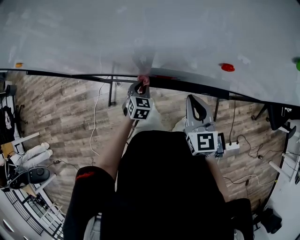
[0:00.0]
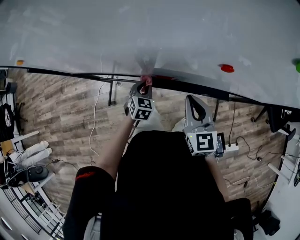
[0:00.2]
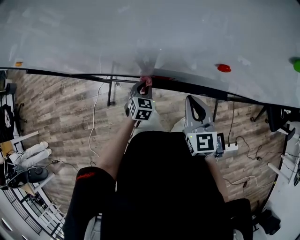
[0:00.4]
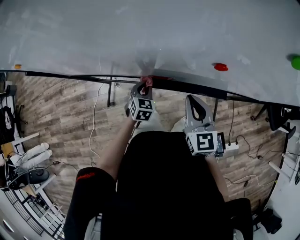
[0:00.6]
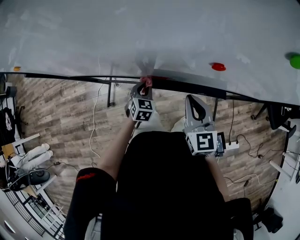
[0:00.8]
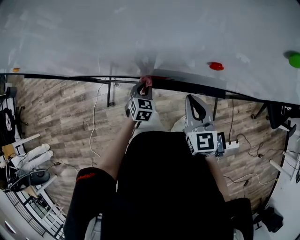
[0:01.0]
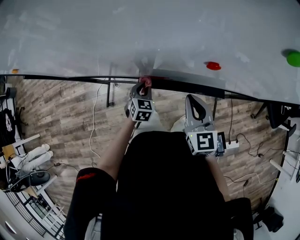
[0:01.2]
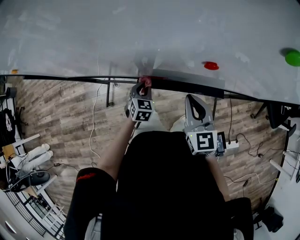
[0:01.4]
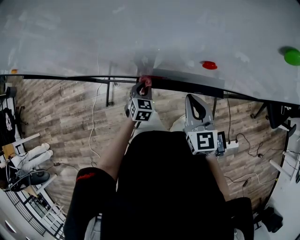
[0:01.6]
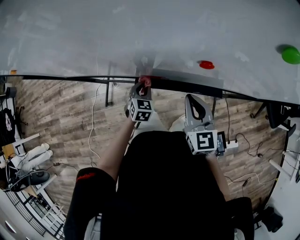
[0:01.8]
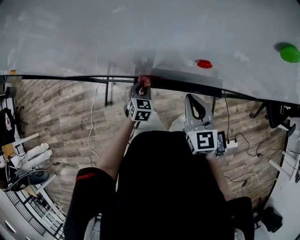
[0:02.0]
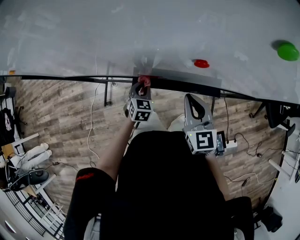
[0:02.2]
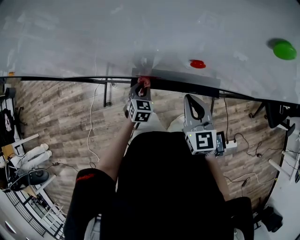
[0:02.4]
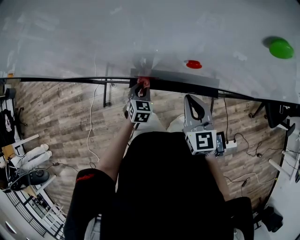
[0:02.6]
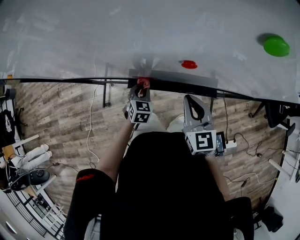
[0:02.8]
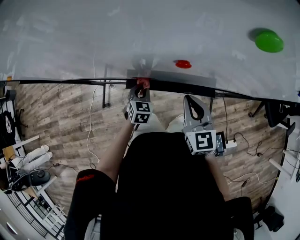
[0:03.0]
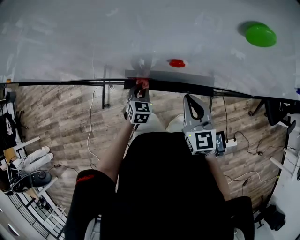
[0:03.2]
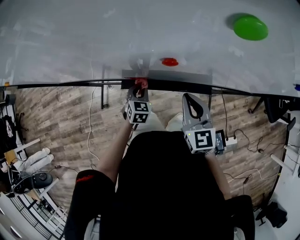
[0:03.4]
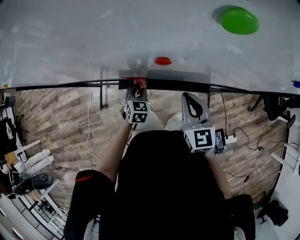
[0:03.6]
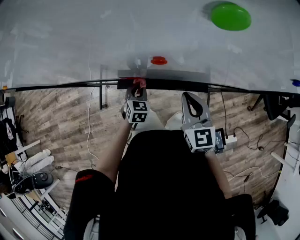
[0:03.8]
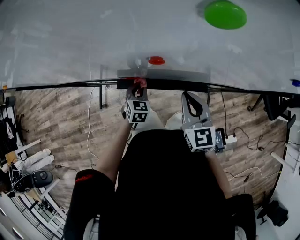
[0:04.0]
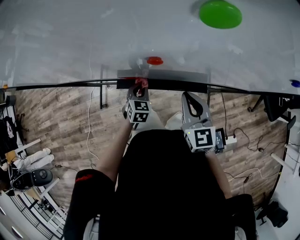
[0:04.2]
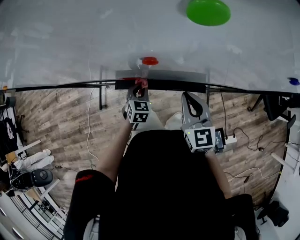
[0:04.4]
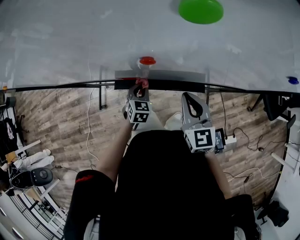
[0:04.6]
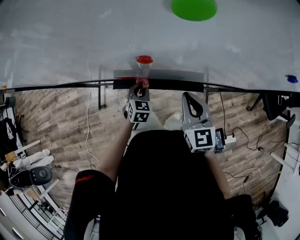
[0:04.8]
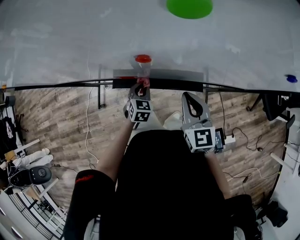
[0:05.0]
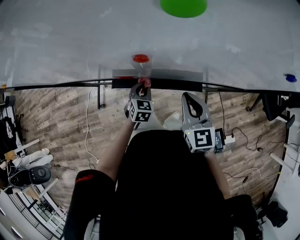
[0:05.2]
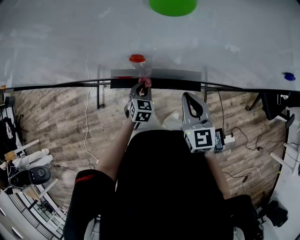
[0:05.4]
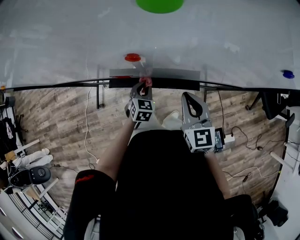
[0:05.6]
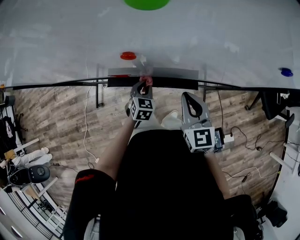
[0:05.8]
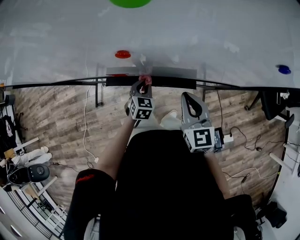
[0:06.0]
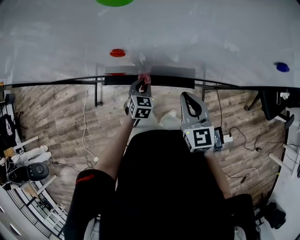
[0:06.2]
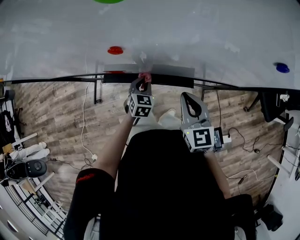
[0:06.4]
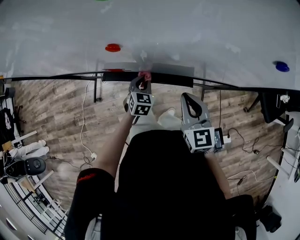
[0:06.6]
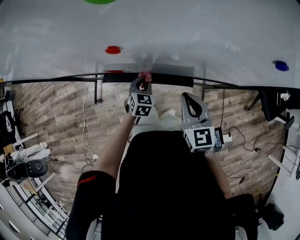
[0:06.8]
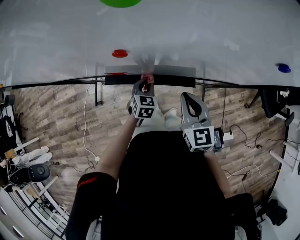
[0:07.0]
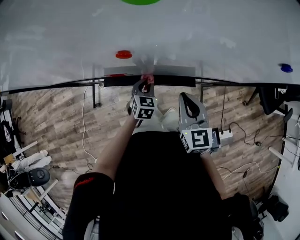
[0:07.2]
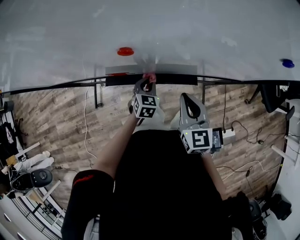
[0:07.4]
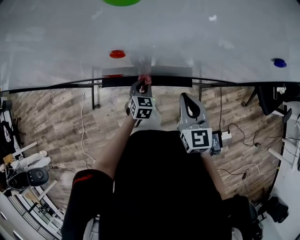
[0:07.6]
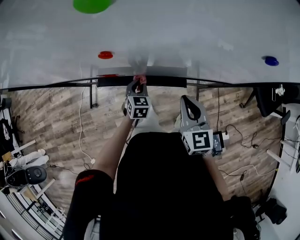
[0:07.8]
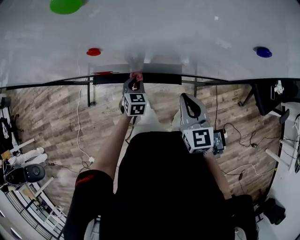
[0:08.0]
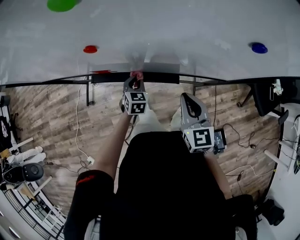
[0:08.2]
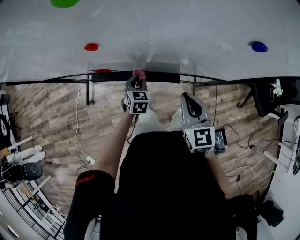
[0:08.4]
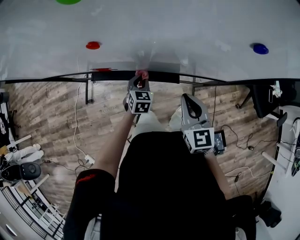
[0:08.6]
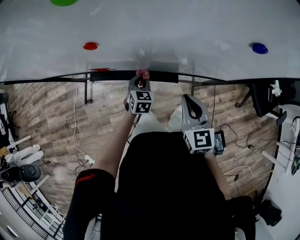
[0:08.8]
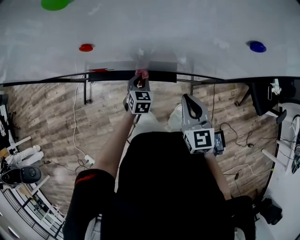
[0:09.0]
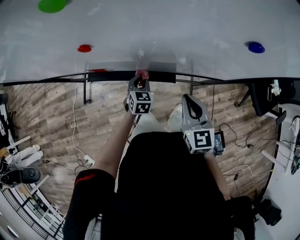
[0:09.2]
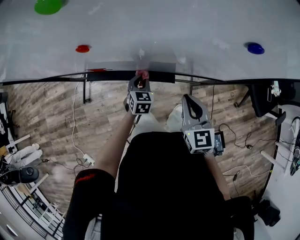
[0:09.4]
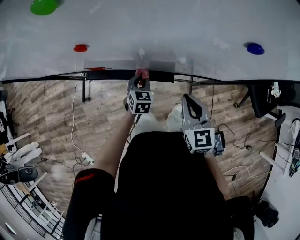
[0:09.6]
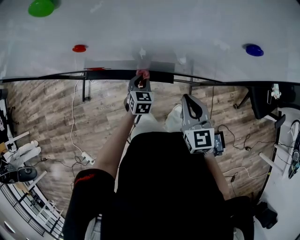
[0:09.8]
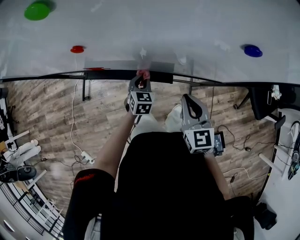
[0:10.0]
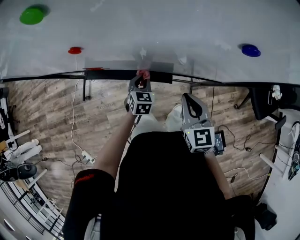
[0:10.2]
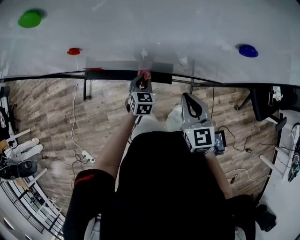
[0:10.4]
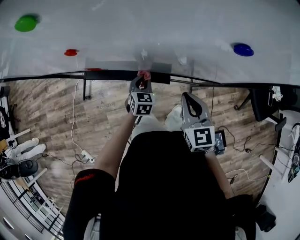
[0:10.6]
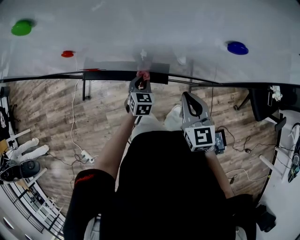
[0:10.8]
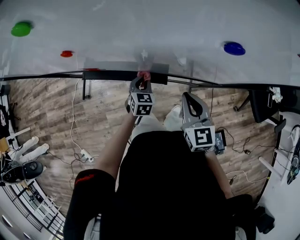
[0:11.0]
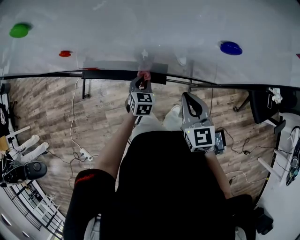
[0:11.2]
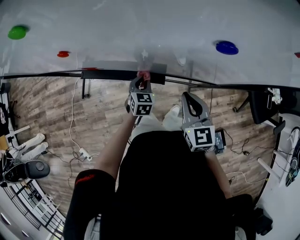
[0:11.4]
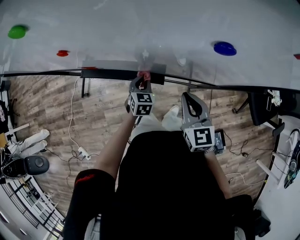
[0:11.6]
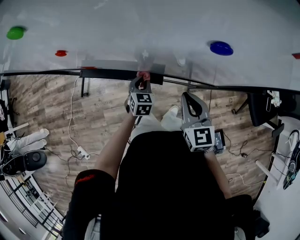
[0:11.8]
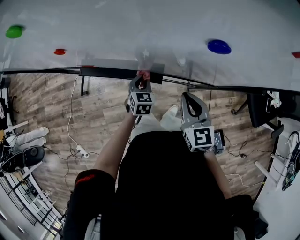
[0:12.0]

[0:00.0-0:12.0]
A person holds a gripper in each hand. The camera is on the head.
0:00.0 to 0:01.6: The left gripper moves some 5 cm.
0:01.6 to 0:03.0: The grippers make only small movements.
0:03.0 to 0:04.4: The two grippers go some 5 cm to the right.
0:04.4 to 0:06.0: Both grippers travel together to the right, approximately 5 cm.
0:06.0 to 0:07.6: There are only small adjustments of the grippers.
0:07.6 to 0:09.0: Both grippers travel together to the right, approximately 5 cm.
0:09.0 to 0:10.4: There are only small adjustments of the grippers.
0:10.4 to 0:12.0: The right gripper travels to the right by about 5 cm.

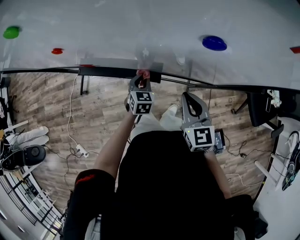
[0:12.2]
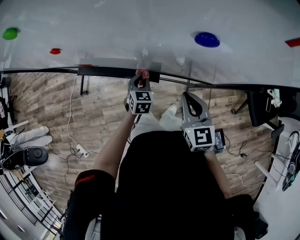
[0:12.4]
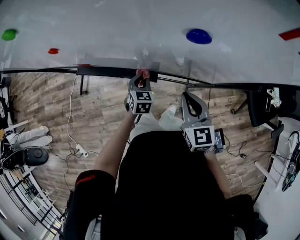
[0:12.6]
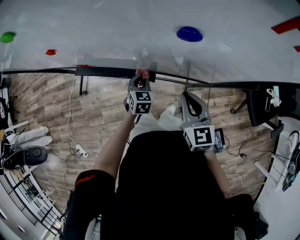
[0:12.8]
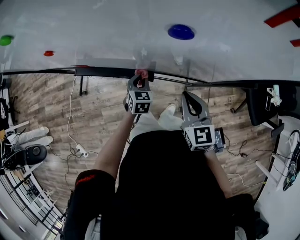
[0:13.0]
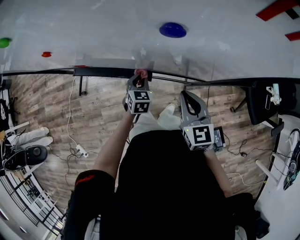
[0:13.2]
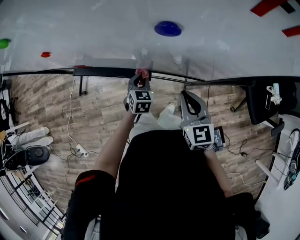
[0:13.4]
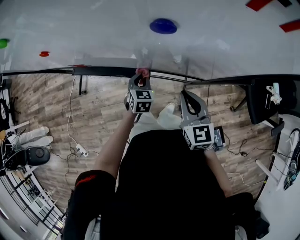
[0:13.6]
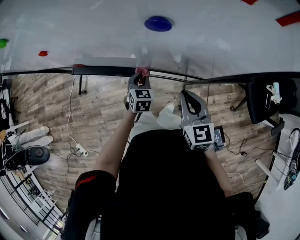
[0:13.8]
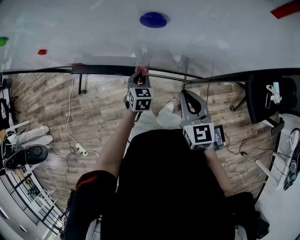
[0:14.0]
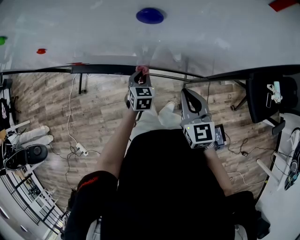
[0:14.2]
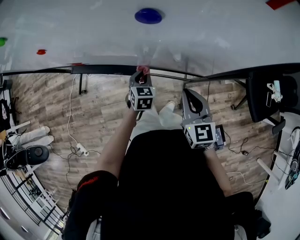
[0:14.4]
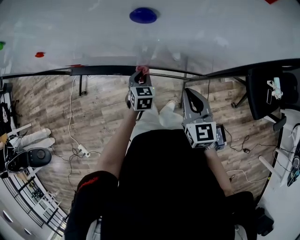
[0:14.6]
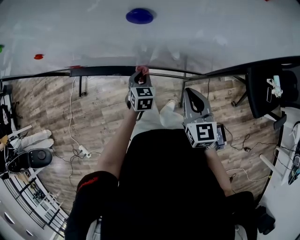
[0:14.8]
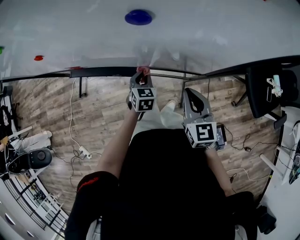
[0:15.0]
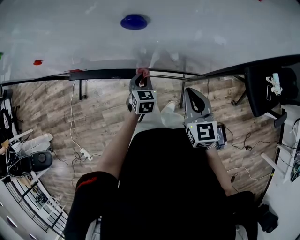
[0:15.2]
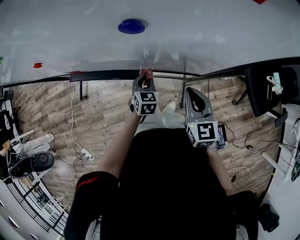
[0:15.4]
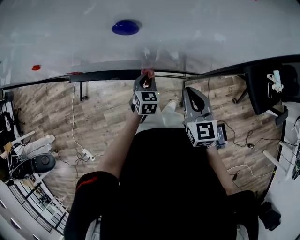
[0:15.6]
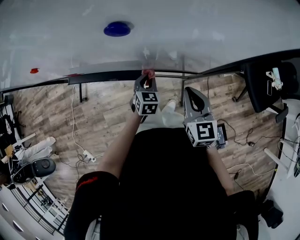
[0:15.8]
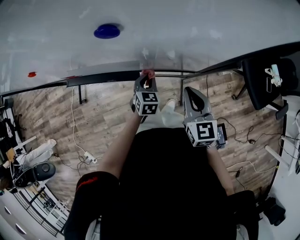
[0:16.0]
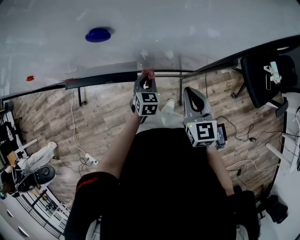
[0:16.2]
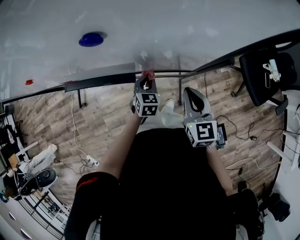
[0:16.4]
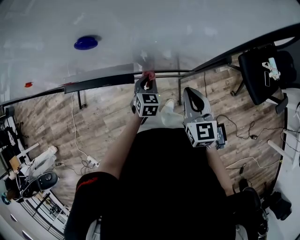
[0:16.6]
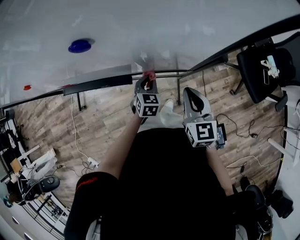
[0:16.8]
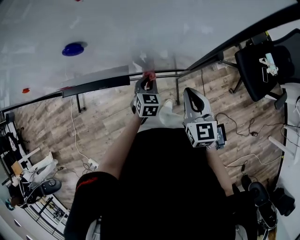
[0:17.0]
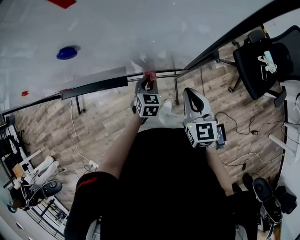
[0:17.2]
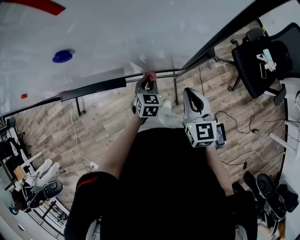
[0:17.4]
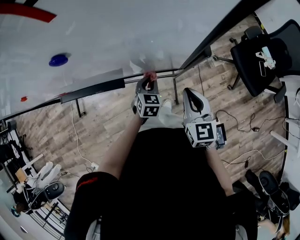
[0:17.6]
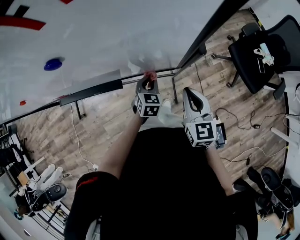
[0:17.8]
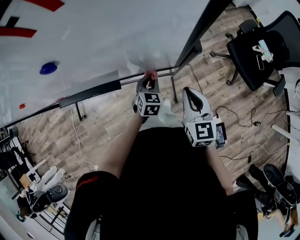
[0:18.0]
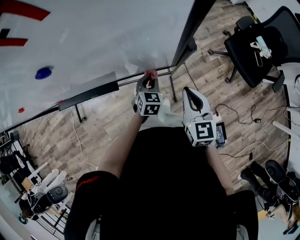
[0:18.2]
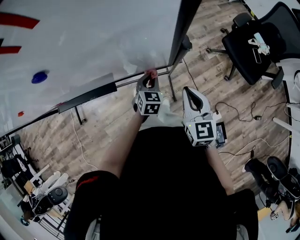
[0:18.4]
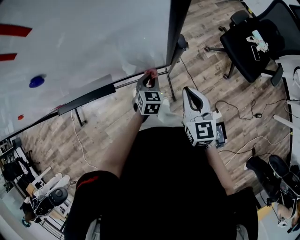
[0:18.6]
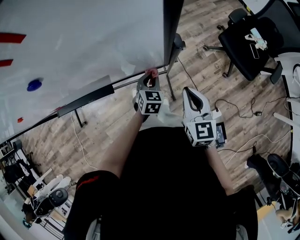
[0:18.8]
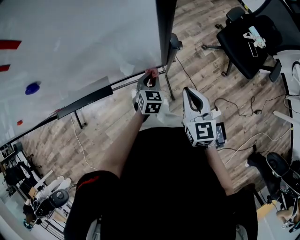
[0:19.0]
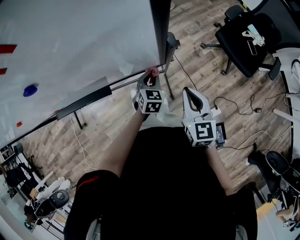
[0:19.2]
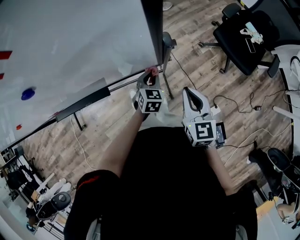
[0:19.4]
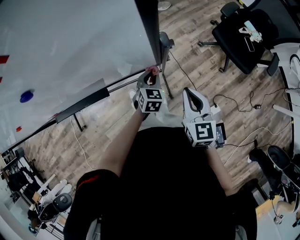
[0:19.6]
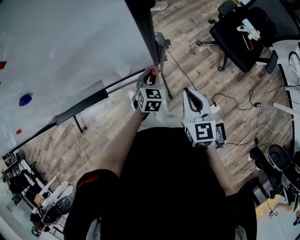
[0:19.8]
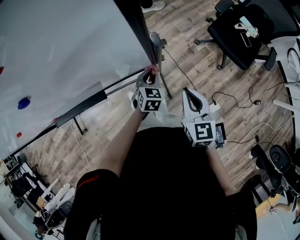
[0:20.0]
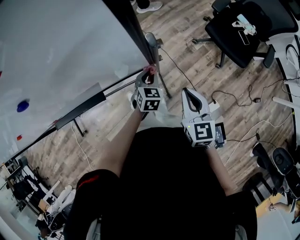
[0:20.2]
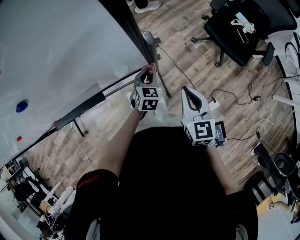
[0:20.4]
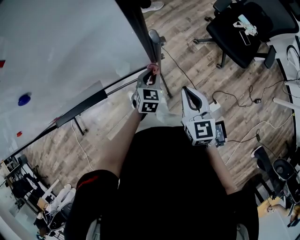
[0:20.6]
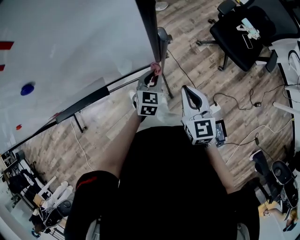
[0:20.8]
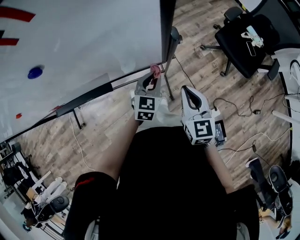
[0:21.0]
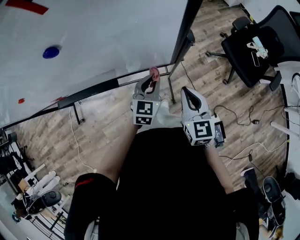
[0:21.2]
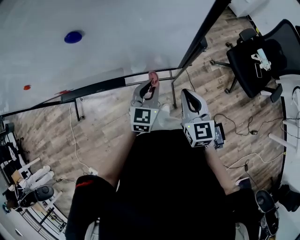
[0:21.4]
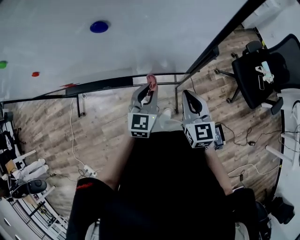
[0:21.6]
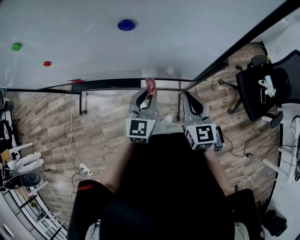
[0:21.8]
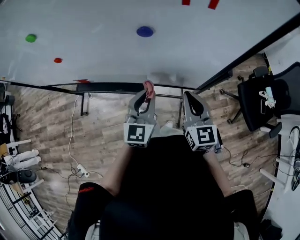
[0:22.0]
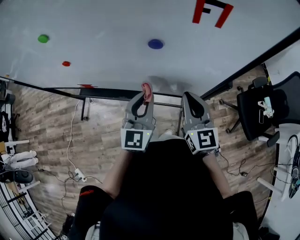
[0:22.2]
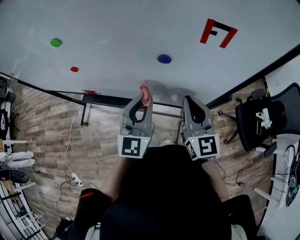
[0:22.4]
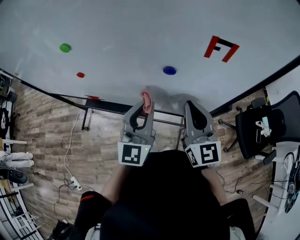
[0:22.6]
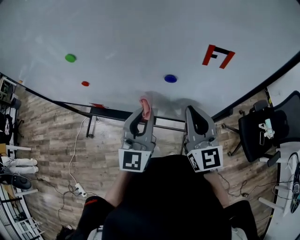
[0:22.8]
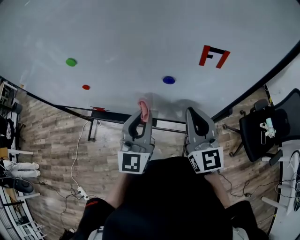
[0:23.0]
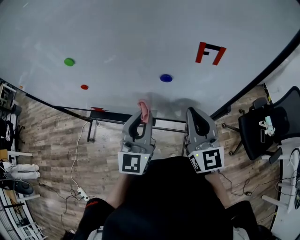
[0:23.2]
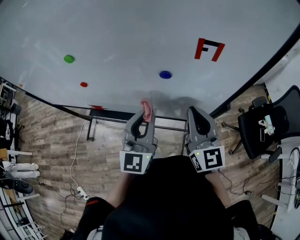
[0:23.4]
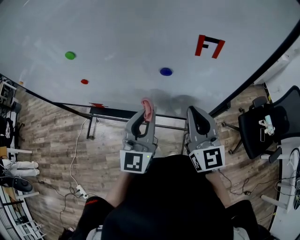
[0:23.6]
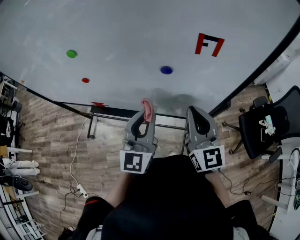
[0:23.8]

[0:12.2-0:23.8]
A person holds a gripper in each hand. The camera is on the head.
0:12.2 to 0:13.6: The two grippers go roughly 5 cm to the right.
0:13.6 to 0:15.0: There are only small adjustments of the grippers.
0:15.0 to 0:16.6: The left gripper shifts about 10 cm to the right.
0:16.6 to 0:18.0: The grippers both shift to the right by some 5 cm.
0:18.0 to 0:19.4: Both grippers move to the right, roughly 5 cm.
0:19.4 to 0:21.0: The left gripper moves upward, about 5 cm.
0:21.0 to 0:22.4: The left gripper goes roughly 25 cm upward, and angles its fingers upward, by about 30 degrees; the right gripper moves some 25 cm, and changes its angle by roughly 30 degrees.
0:22.4 to 0:23.8: The right gripper moves approximately 5 cm.

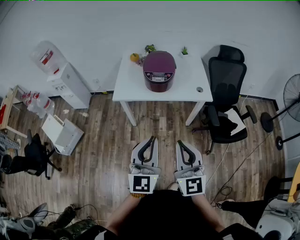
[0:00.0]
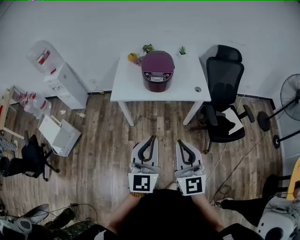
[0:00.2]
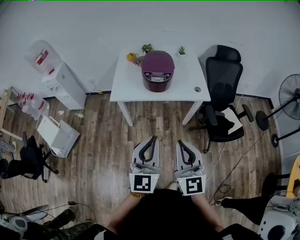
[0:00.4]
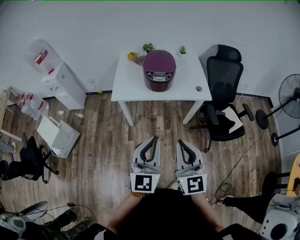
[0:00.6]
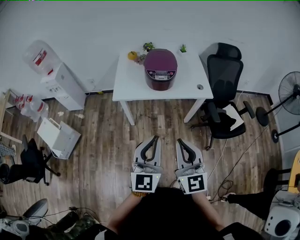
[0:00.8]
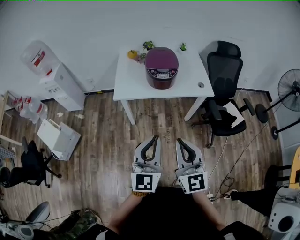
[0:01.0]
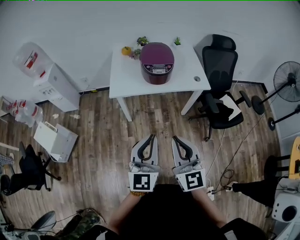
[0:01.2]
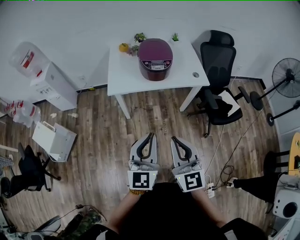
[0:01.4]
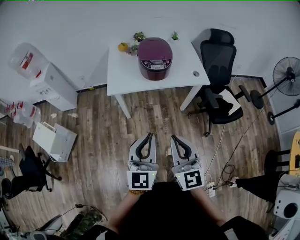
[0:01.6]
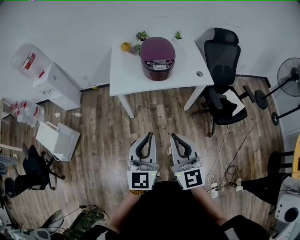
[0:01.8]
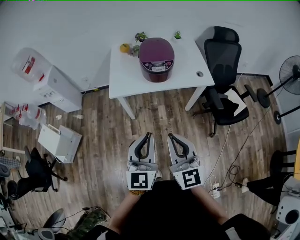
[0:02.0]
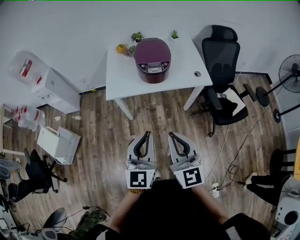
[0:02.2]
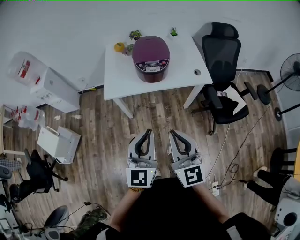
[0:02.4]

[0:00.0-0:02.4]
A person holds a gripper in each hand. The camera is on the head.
0:00.0 to 0:01.2: Both grippers move to the left, some 10 cm.
0:01.2 to 0:02.4: The two grippers go roughly 10 cm forward.
